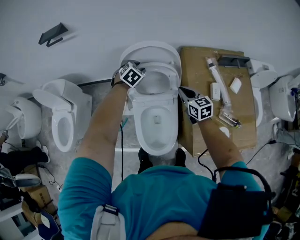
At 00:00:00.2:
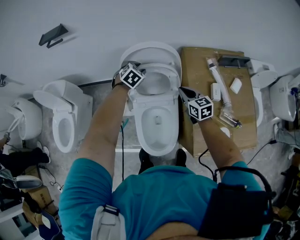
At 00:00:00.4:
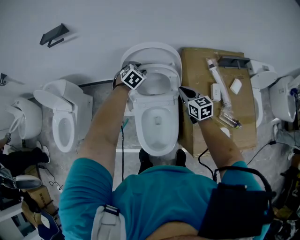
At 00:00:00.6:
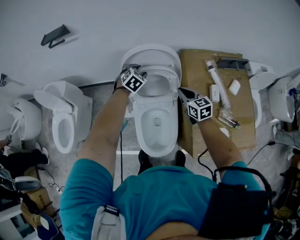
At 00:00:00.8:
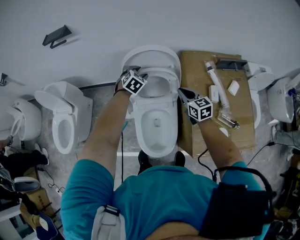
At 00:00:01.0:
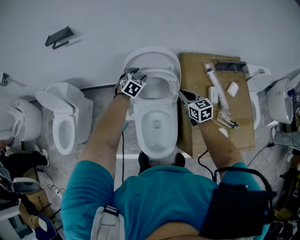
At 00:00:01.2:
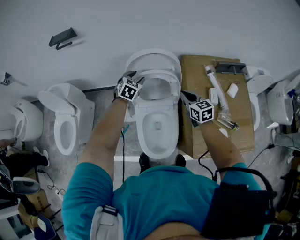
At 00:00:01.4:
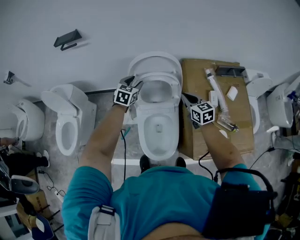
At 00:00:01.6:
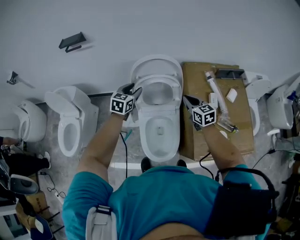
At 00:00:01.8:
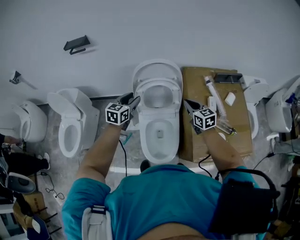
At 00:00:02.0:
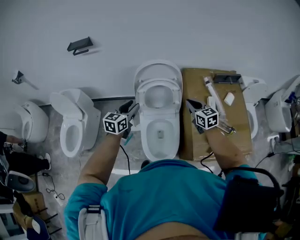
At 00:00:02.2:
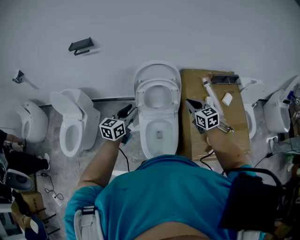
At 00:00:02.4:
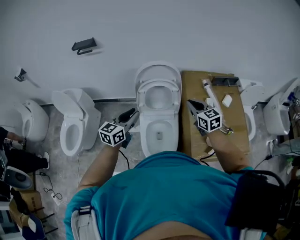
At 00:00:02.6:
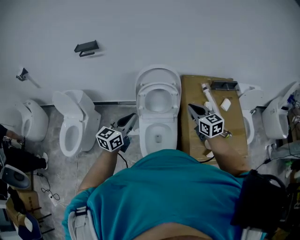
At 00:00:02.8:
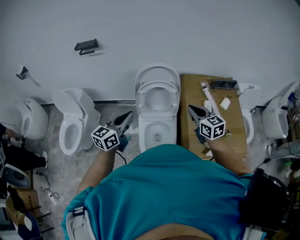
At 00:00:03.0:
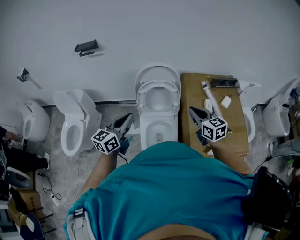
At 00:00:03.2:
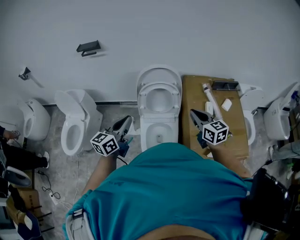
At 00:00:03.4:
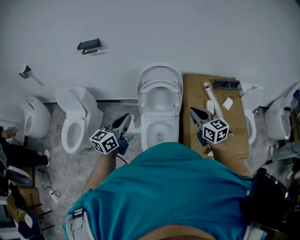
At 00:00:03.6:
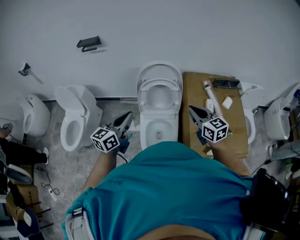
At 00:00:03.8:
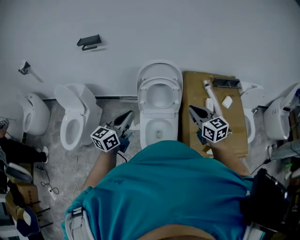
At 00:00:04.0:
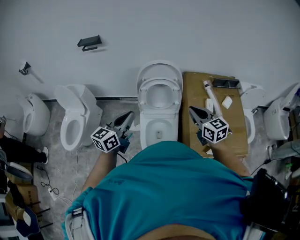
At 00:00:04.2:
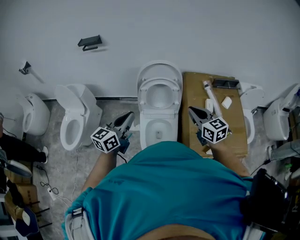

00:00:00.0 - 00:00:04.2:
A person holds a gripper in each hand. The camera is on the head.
00:00:00.0 - 00:00:01.4: The left gripper travels upward, backward and to the left by some 10 cm, and changes its angle by about 30 degrees, while the right gripper shifts about 5 cm upward.
00:00:01.4 - 00:00:02.8: The right gripper moves upward and backward, roughly 20 cm. The left gripper travels backward and upward by roughly 35 cm, turns by some 40 degrees, and closes up.
00:00:02.8 - 00:00:04.2: There are only small adjustments of the grippers.

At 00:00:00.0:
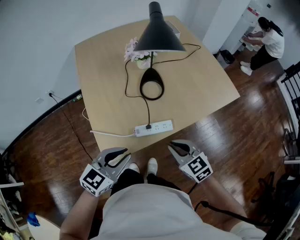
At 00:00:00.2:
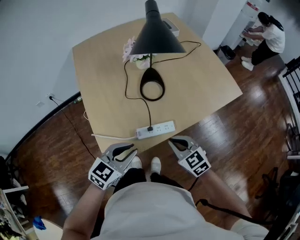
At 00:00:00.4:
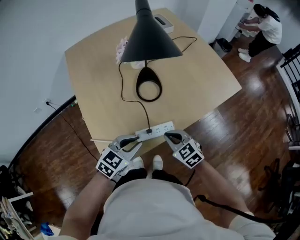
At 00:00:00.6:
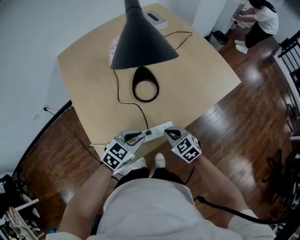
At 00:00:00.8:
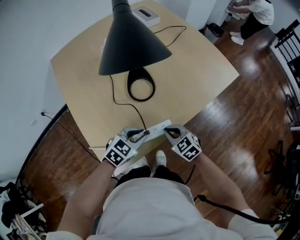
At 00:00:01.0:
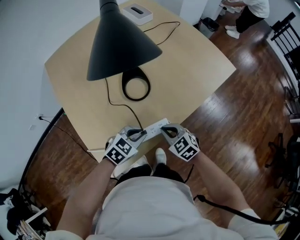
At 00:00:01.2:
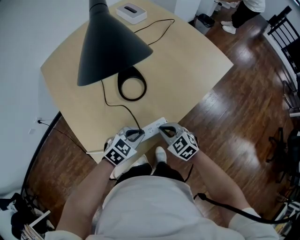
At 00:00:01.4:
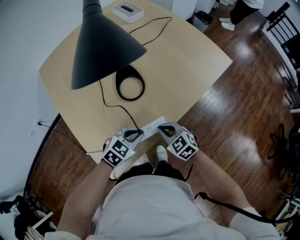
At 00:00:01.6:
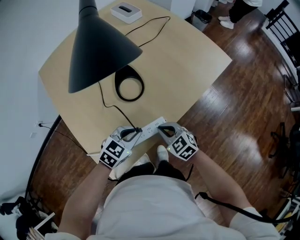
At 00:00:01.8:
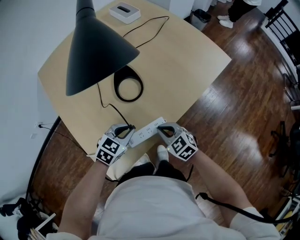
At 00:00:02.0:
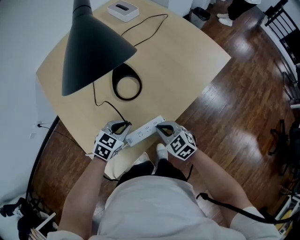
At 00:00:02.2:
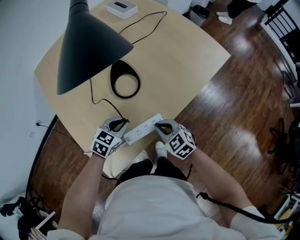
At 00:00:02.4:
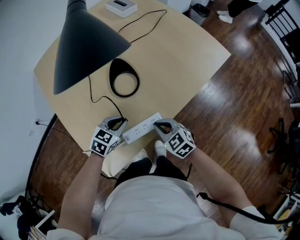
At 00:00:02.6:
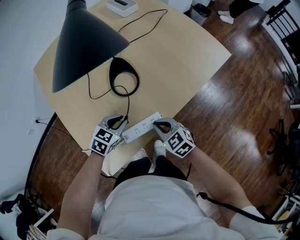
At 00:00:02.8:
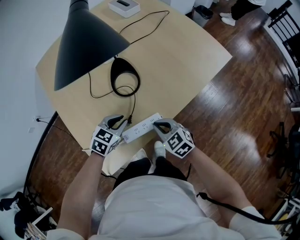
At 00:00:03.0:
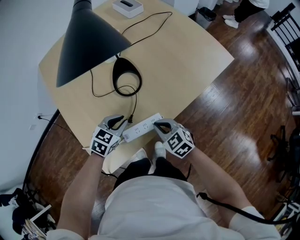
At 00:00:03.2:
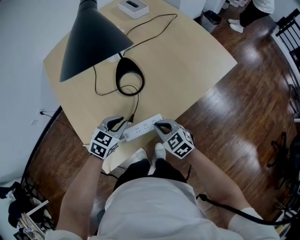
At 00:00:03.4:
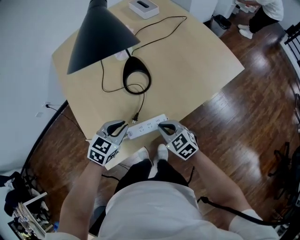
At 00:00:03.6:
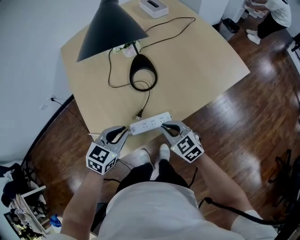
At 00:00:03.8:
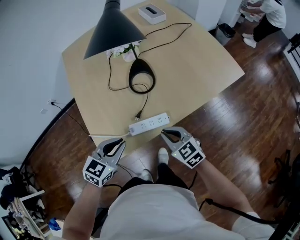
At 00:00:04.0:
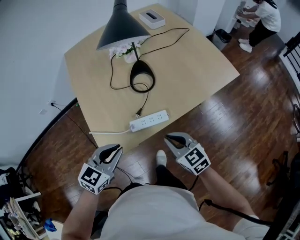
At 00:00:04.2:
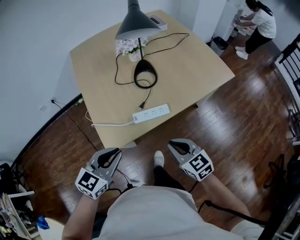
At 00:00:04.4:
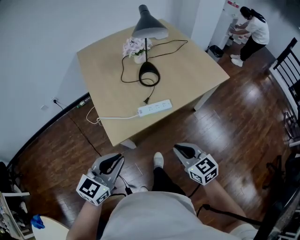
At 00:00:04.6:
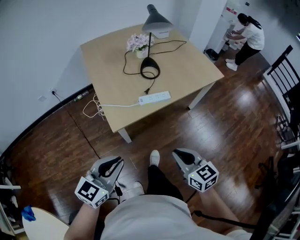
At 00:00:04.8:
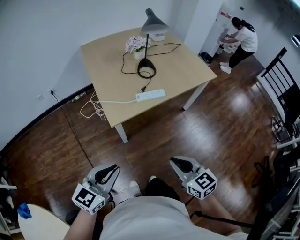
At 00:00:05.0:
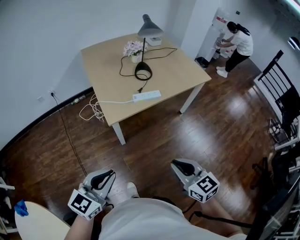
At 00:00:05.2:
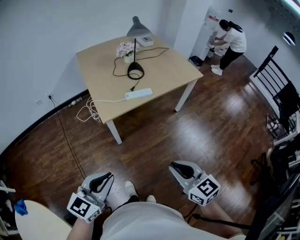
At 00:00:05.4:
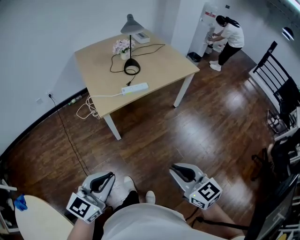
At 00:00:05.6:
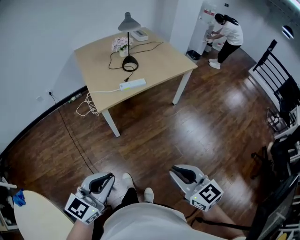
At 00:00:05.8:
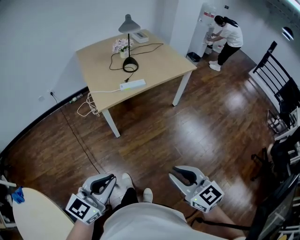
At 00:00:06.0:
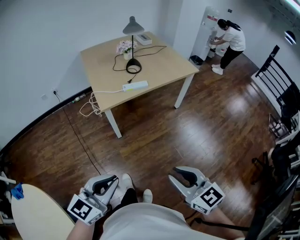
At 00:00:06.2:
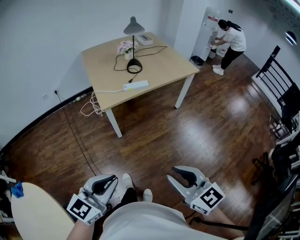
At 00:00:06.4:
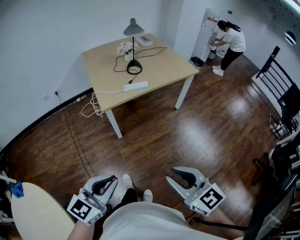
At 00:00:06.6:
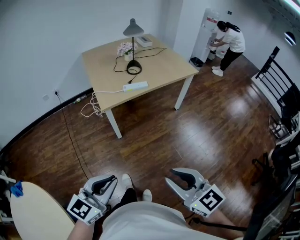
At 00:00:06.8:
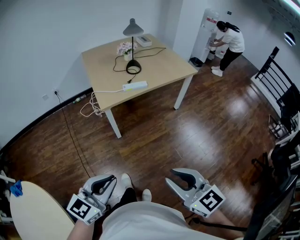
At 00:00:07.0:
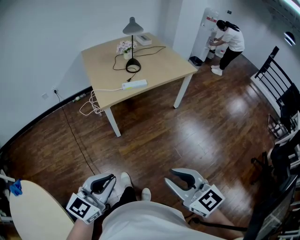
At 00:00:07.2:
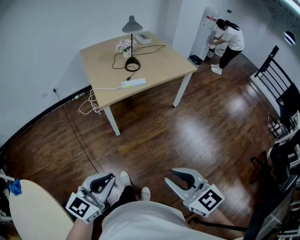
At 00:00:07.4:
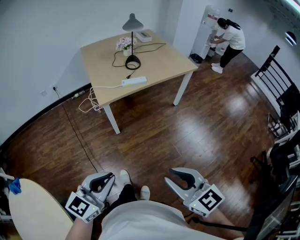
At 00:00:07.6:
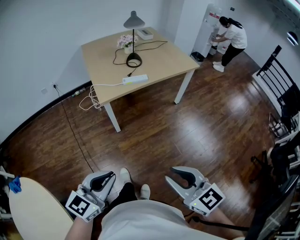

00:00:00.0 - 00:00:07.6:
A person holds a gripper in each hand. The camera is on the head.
00:00:00.0 - 00:00:01.6: The left gripper goes some 20 cm forward and downward, and rotates approximately 30 degrees; the right gripper shifts some 15 cm downward and forward.
00:00:01.6 - 00:00:03.0: The left gripper moves some 5 cm.
00:00:03.0 - 00:00:04.6: Both grippers travel together backward and upward, approximately 40 cm. The left gripper swivels about 30 degrees.
00:00:04.6 - 00:00:06.0: Both grippers move backward, about 30 cm.
00:00:06.0 - 00:00:07.6: The grippers stay close to where they were, moving slightly.

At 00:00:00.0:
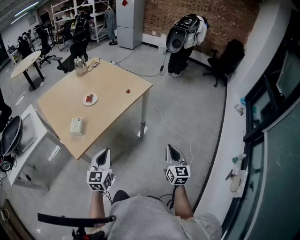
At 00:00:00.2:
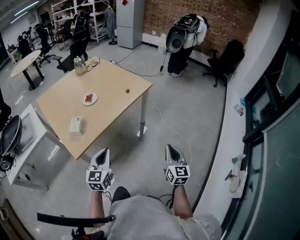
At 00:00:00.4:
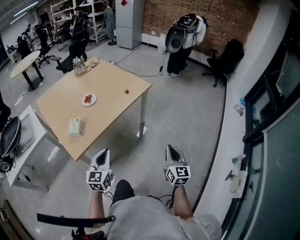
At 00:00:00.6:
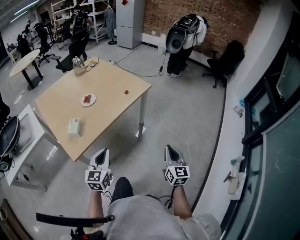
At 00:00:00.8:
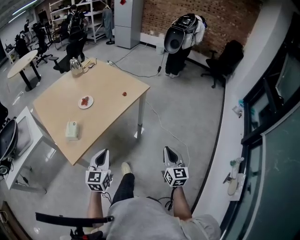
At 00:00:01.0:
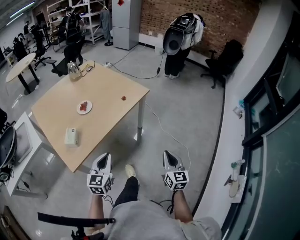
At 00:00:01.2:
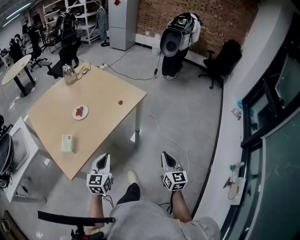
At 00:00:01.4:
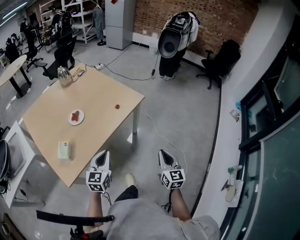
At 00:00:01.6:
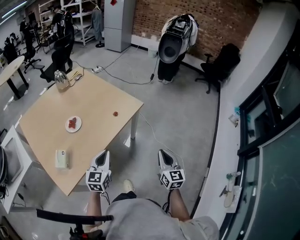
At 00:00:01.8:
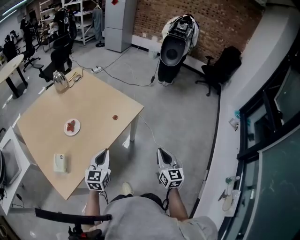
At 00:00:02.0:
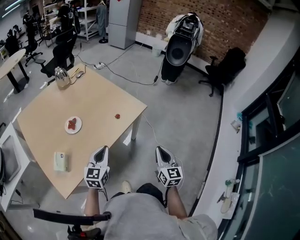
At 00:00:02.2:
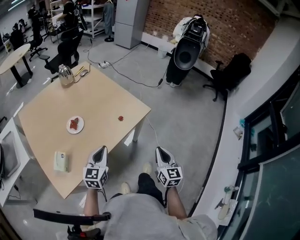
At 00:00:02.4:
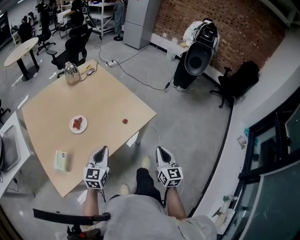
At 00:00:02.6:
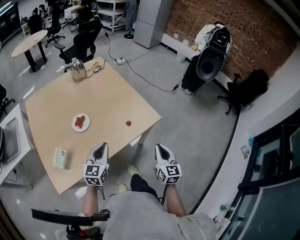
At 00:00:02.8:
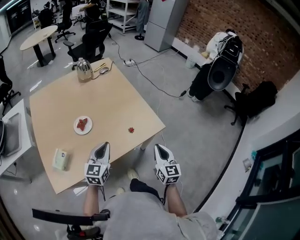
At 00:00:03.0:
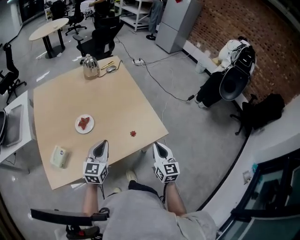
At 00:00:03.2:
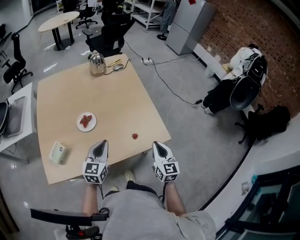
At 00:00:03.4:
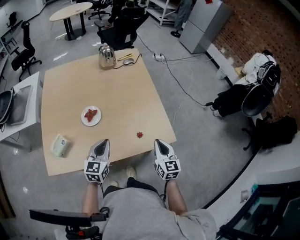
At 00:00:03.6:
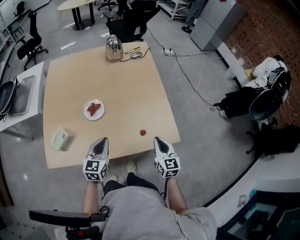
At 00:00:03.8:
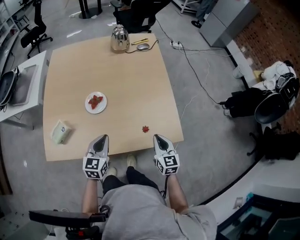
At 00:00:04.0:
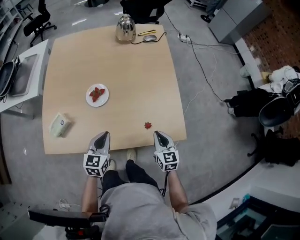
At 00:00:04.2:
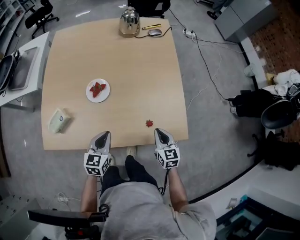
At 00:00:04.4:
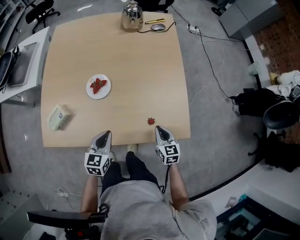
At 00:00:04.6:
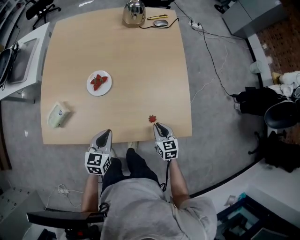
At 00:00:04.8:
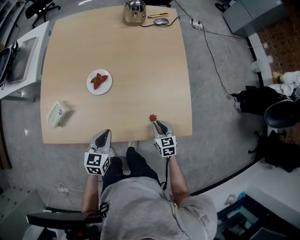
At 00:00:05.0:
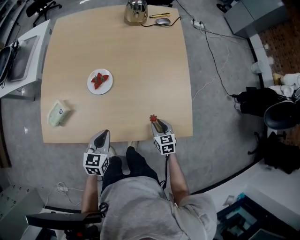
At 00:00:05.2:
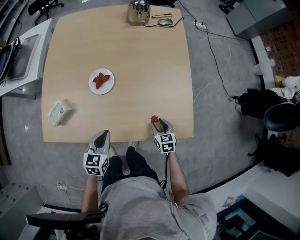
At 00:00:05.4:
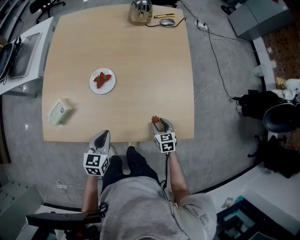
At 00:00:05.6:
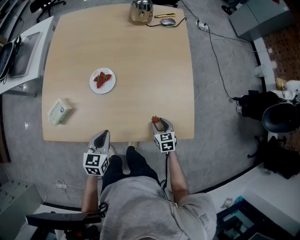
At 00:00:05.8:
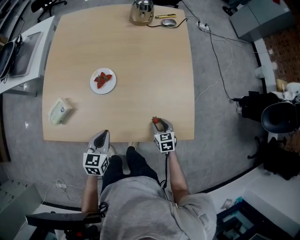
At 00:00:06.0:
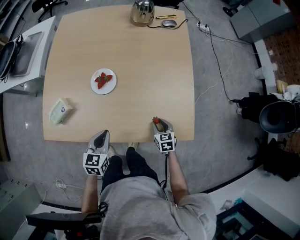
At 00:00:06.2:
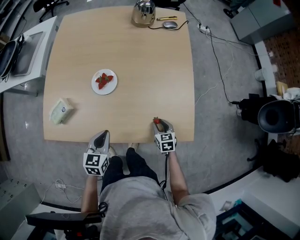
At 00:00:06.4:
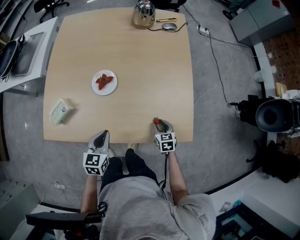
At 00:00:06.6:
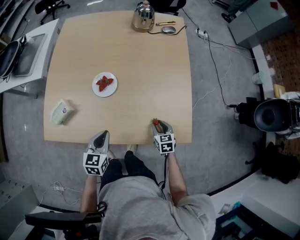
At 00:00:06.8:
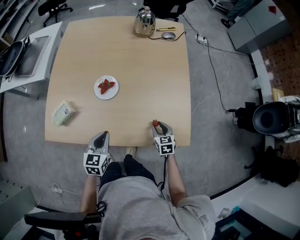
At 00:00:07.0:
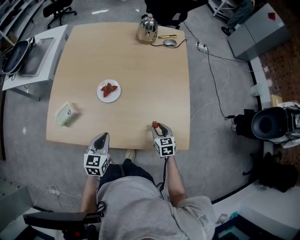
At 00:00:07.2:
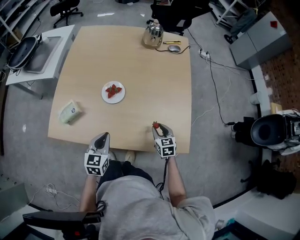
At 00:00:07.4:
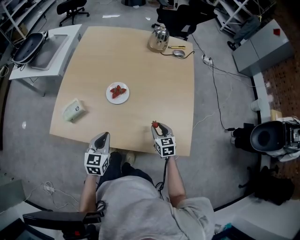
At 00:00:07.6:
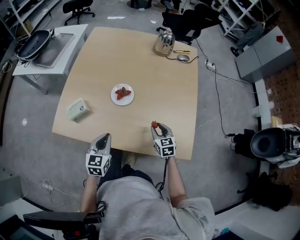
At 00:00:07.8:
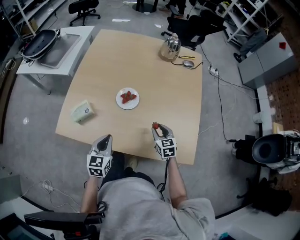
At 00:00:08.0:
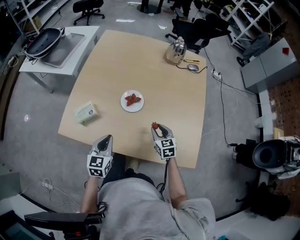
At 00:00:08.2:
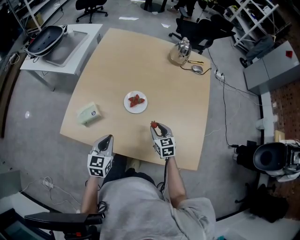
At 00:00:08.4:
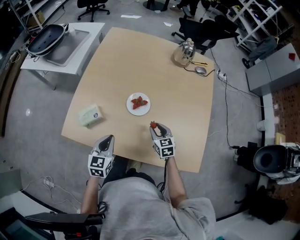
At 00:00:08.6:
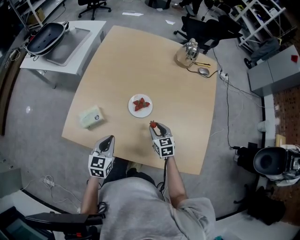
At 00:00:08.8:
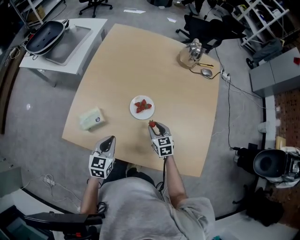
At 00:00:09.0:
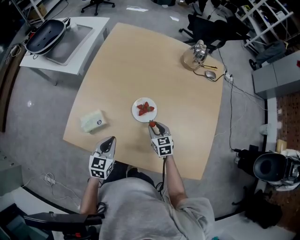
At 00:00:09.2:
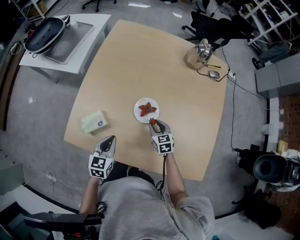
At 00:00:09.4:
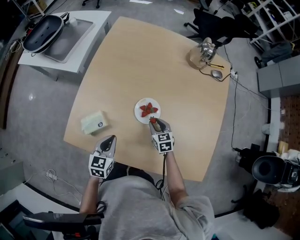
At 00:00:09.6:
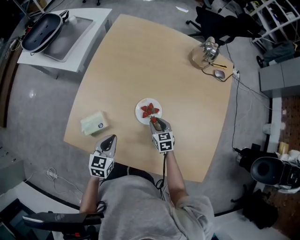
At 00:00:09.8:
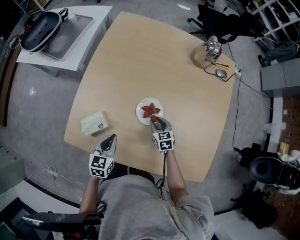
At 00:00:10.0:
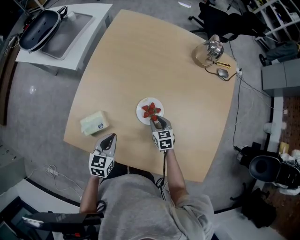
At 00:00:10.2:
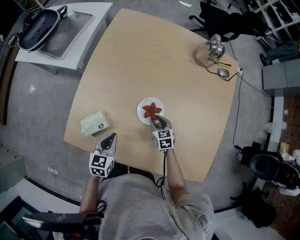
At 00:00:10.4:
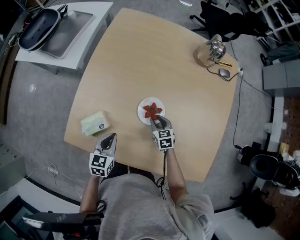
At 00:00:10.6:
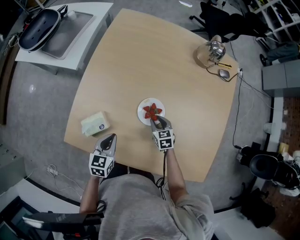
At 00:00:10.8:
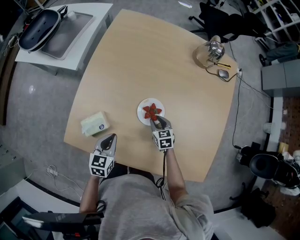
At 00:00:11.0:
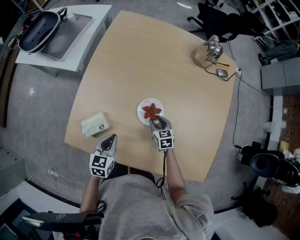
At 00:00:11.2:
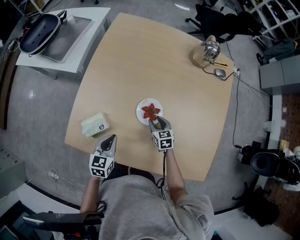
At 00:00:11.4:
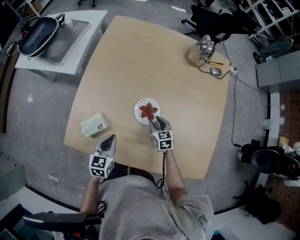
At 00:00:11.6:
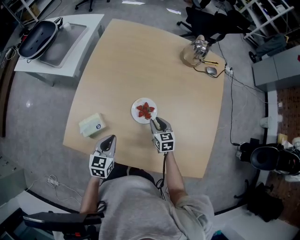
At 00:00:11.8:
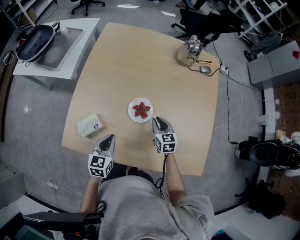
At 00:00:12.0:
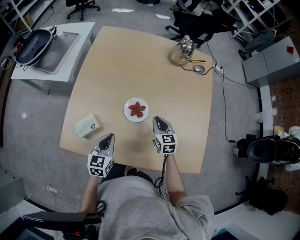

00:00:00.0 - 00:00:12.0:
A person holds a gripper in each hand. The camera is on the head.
00:00:00.0 - 00:00:01.6: Both grippers move forward, roughly 25 cm.
00:00:01.6 - 00:00:03.0: The left gripper shifts by approximately 25 cm, and swivels some 20 degrees, while the right gripper moves some 35 cm, and rotates some 30 degrees.
00:00:03.0 - 00:00:04.4: The right gripper is displaced downward and forward by some 25 cm, and swivels roughly 30 degrees. The left gripper travels downward by some 15 cm, and turns by about 30 degrees.
00:00:04.4 - 00:00:06.0: The right gripper goes some 10 cm downward, and opens up.
00:00:06.0 - 00:00:07.6: The right gripper is displaced upward, to the left and forward by roughly 15 cm; the left gripper shifts approximately 10 cm to the left and upward.
00:00:07.6 - 00:00:09.0: The left gripper travels forward and to the left by about 15 cm. The right gripper travels to the left and forward by approximately 20 cm.
00:00:09.0 - 00:00:10.4: The left gripper moves some 5 cm; the right gripper moves downward and forward, approximately 10 cm.
00:00:10.4 - 00:00:12.0: The right gripper moves upward and to the right, some 15 cm, swivels approximately 20 degrees, and closes. Meanwhile the left gripper shifts roughly 5 cm upward.
